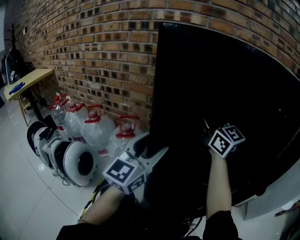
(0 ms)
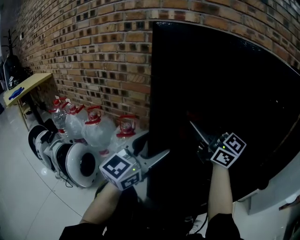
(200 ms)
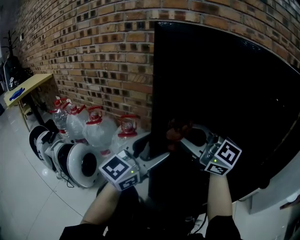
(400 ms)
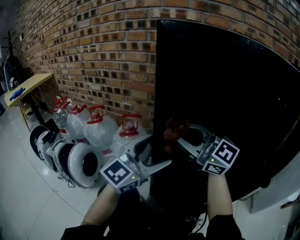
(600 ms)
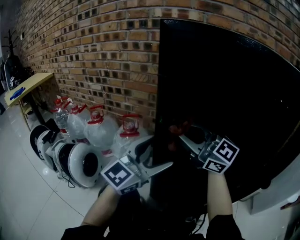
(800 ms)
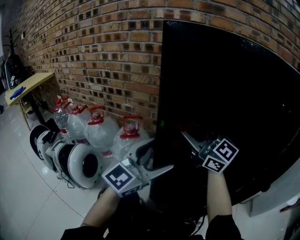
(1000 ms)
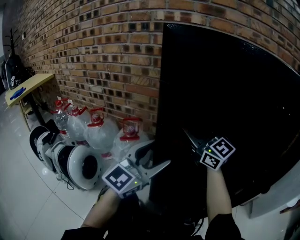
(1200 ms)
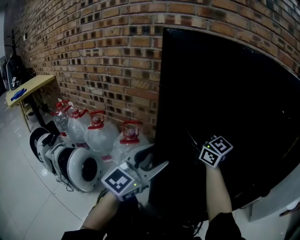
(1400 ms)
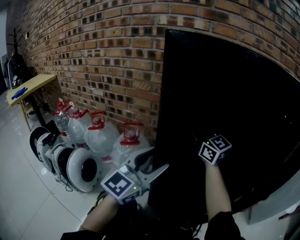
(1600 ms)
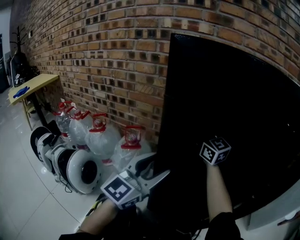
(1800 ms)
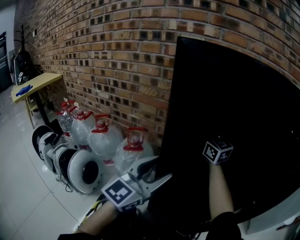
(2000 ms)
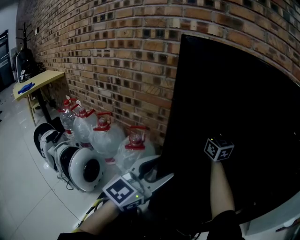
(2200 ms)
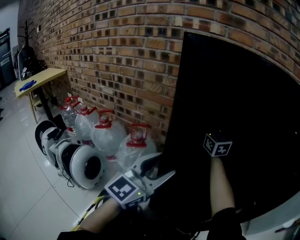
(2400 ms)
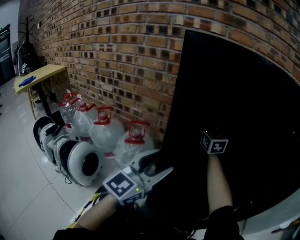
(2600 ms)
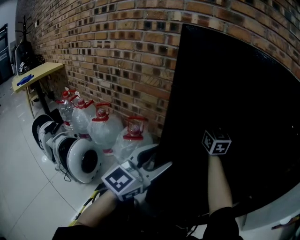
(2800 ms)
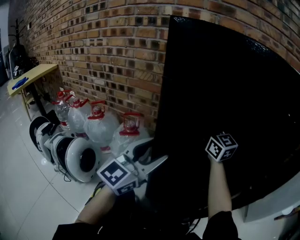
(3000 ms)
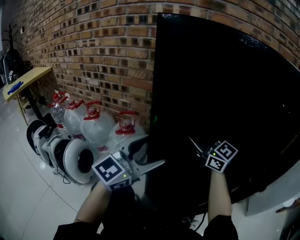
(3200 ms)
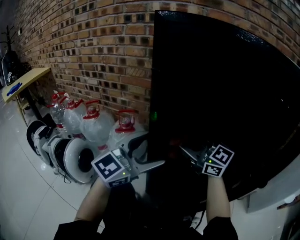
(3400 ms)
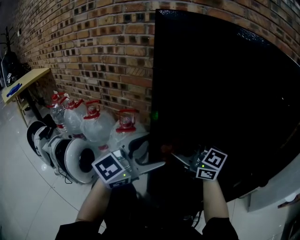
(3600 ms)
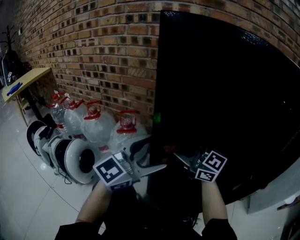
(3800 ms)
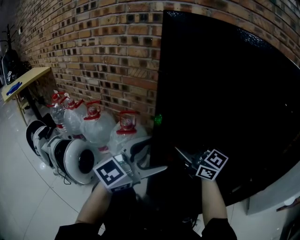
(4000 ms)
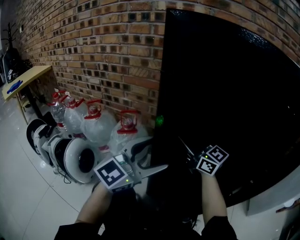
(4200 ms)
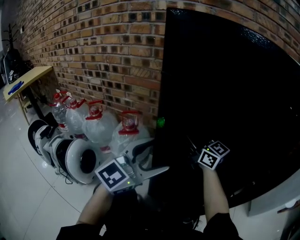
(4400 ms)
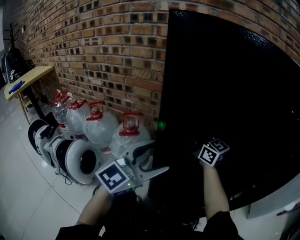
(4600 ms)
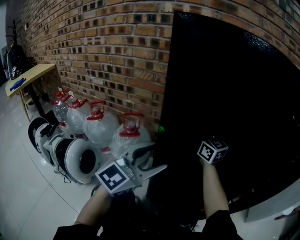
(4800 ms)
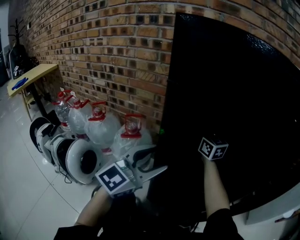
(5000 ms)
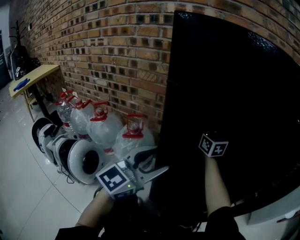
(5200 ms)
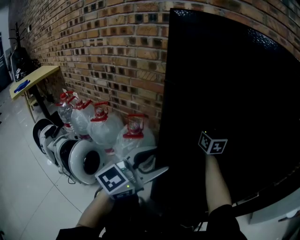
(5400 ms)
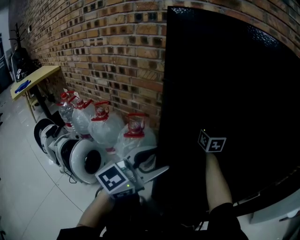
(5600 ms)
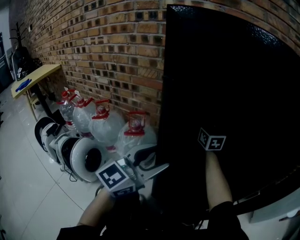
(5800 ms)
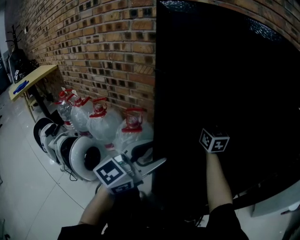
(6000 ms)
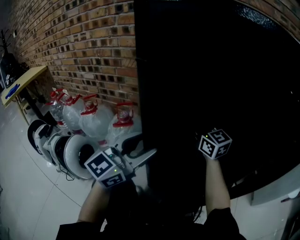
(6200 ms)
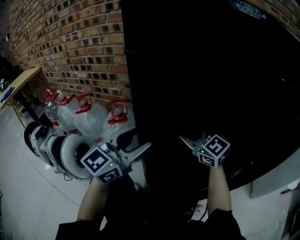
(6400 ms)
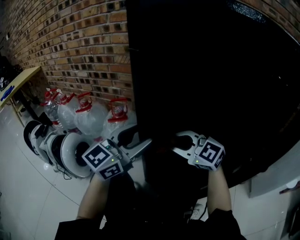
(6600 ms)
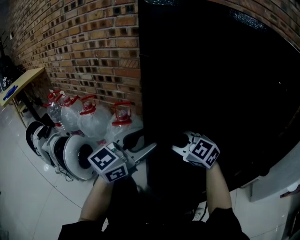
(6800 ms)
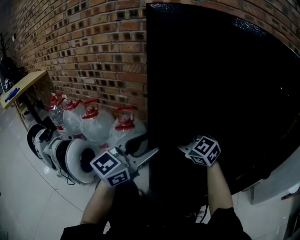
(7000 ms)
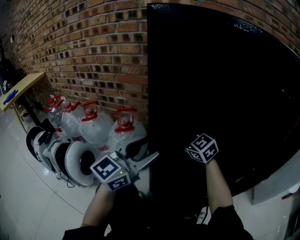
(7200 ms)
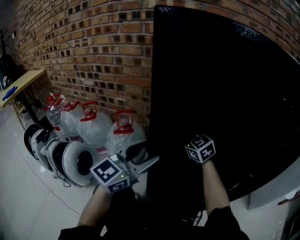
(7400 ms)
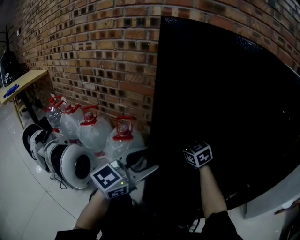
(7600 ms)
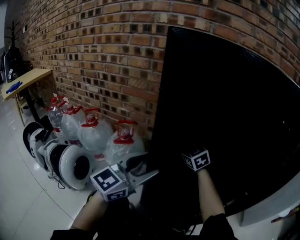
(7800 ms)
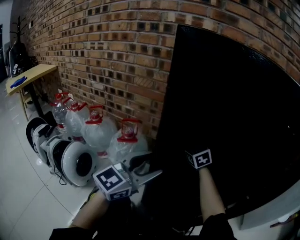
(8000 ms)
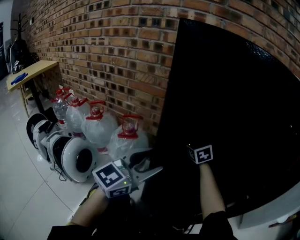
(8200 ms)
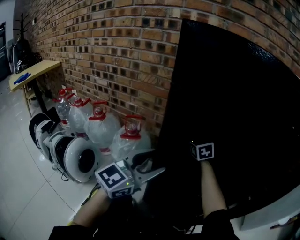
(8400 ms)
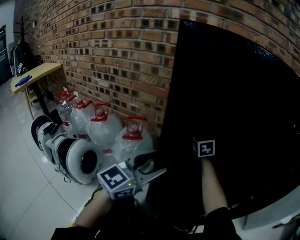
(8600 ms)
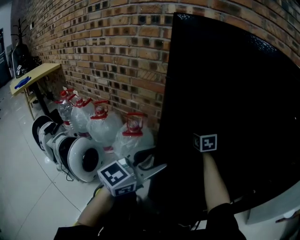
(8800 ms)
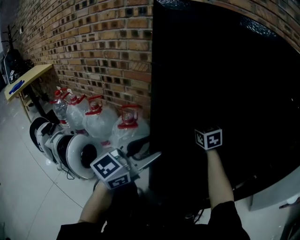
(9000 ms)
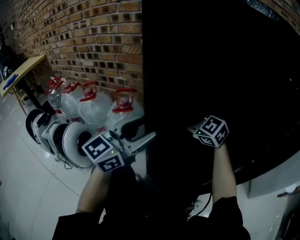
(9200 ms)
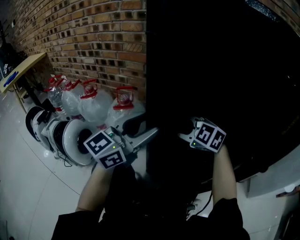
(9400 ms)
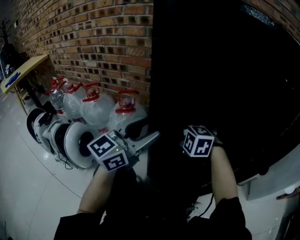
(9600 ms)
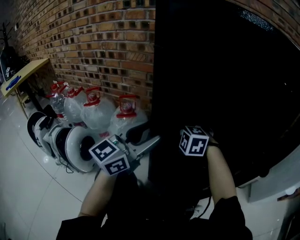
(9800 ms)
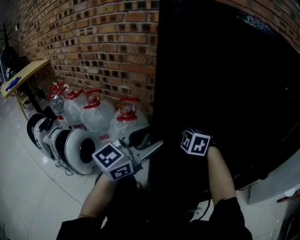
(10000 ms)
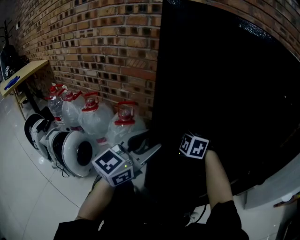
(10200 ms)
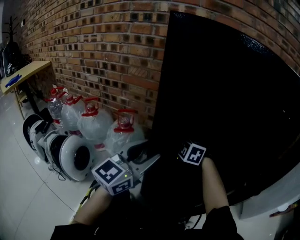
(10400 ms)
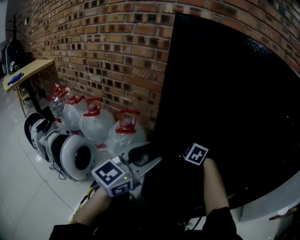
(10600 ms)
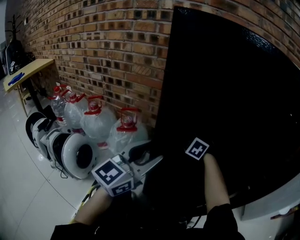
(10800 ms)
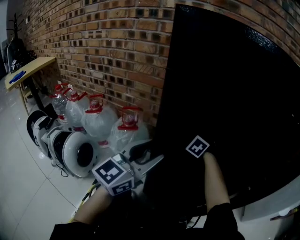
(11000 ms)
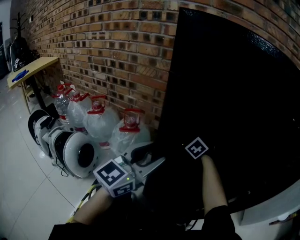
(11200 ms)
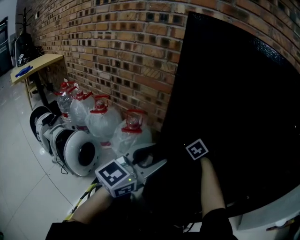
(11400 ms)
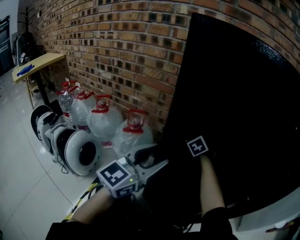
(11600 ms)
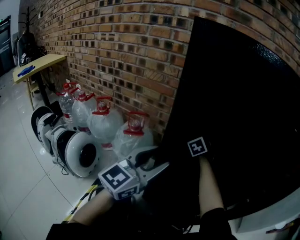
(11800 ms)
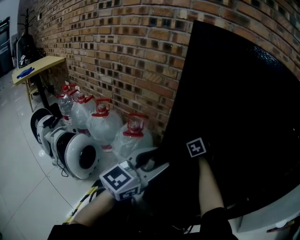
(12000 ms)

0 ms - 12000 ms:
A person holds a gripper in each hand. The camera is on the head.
0 ms - 1600 ms: The right gripper heads downward, covering approximately 5 cm, and travels backward and back again, roughly 10 cm each way.
1600 ms - 3000 ms: The right gripper travels forward and back again, some 10 cm each way.
3000 ms - 4400 ms: The right gripper travels to the left and downward by roughly 10 cm, and reaches roughly 15 cm backward, then returns.
4400 ms - 6000 ms: The right gripper is displaced forward by roughly 10 cm, and swivels approximately 30 degrees.
6000 ms - 7600 ms: The right gripper moves downward, some 10 cm, travels backward and back again, some 20 cm each way, and turns by approximately 30 degrees.
9000 ms - 10400 ms: The right gripper heads backward, to the left and downward, covering some 15 cm, and tilts its fingers about 30 degrees downward.
10400 ms - 12000 ms: The right gripper moves forward, about 15 cm, and turns by roughly 50 degrees.

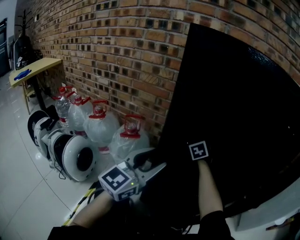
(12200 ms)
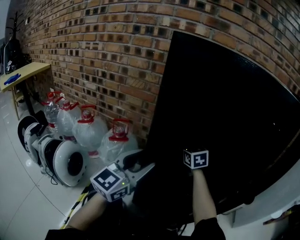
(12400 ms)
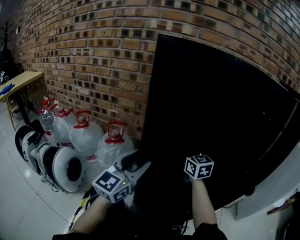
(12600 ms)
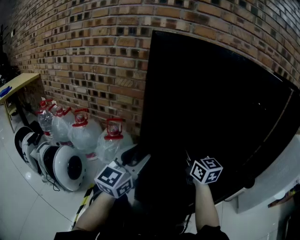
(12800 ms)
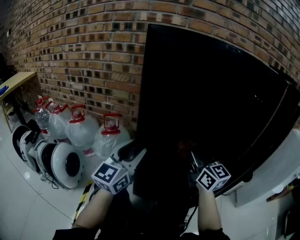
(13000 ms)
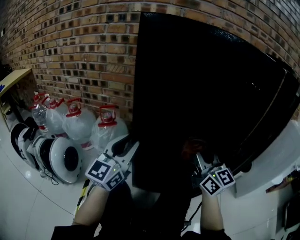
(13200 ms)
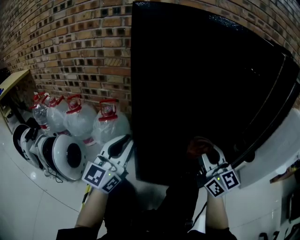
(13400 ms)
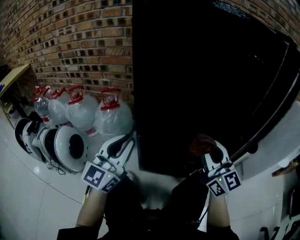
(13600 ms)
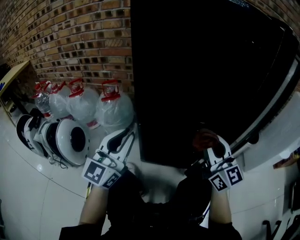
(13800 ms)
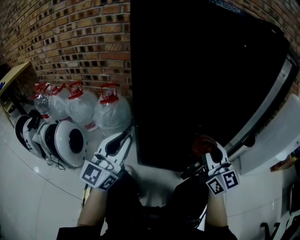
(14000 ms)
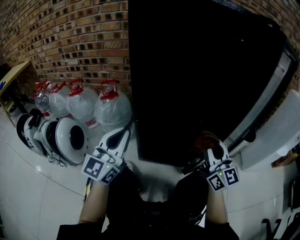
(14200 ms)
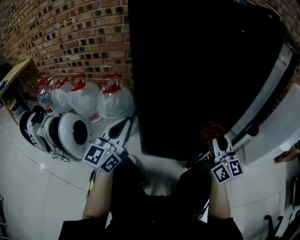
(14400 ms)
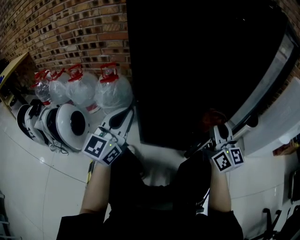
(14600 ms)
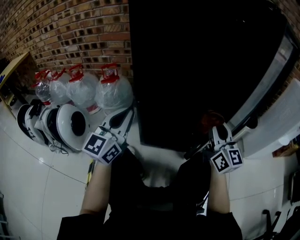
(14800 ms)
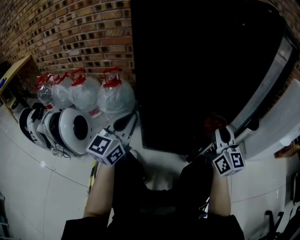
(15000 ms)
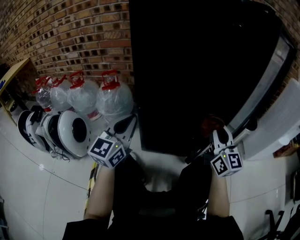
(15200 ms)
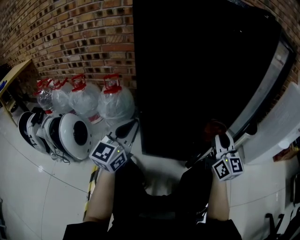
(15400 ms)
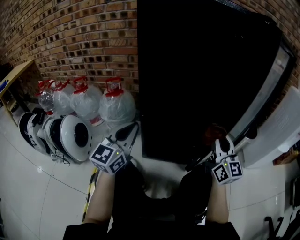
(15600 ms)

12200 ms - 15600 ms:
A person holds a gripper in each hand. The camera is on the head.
12200 ms - 13800 ms: The right gripper goes some 35 cm backward, and angles its fingers upward, by roughly 40 degrees; the left gripper heads backward, covering roughly 10 cm, and closes its fingers.
13800 ms - 15600 ms: The right gripper moves to the right, roughly 5 cm.

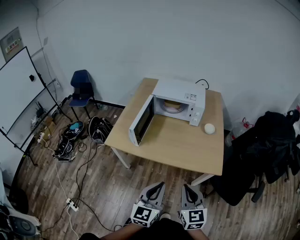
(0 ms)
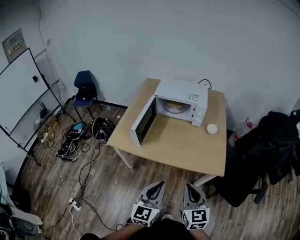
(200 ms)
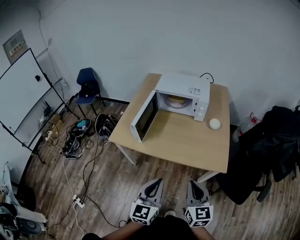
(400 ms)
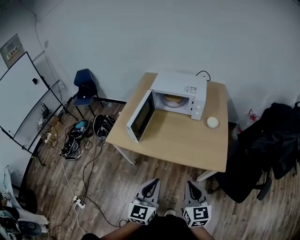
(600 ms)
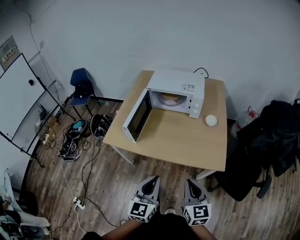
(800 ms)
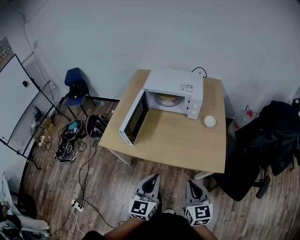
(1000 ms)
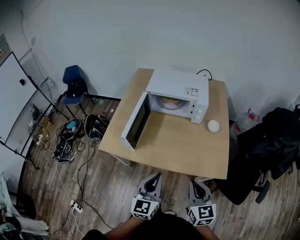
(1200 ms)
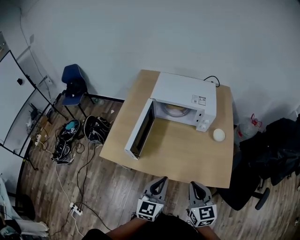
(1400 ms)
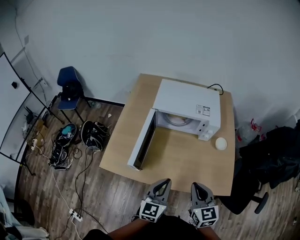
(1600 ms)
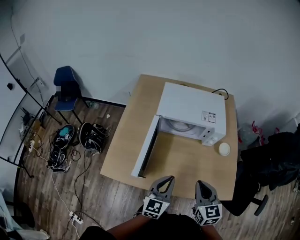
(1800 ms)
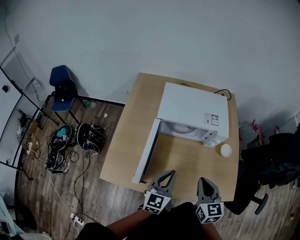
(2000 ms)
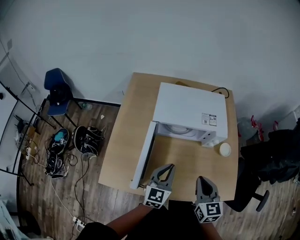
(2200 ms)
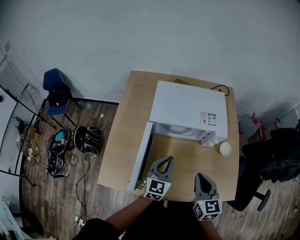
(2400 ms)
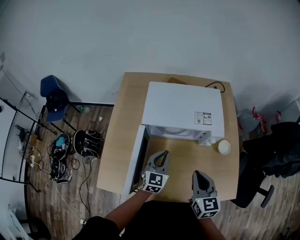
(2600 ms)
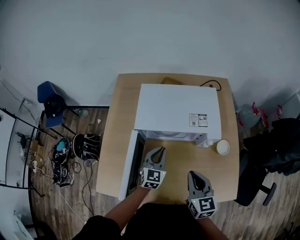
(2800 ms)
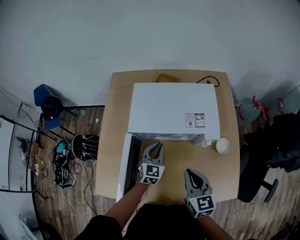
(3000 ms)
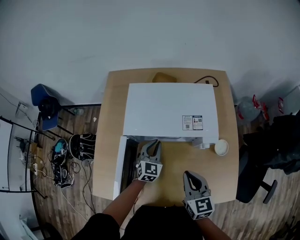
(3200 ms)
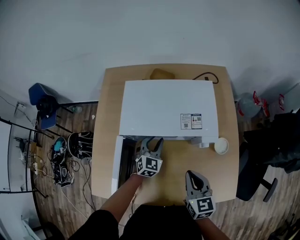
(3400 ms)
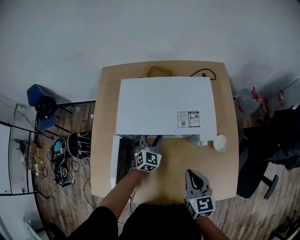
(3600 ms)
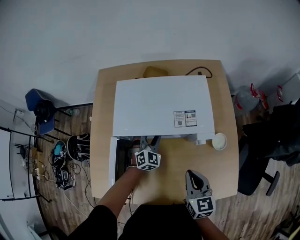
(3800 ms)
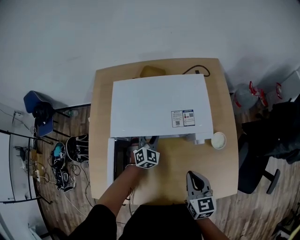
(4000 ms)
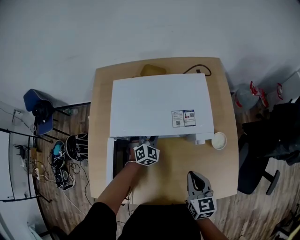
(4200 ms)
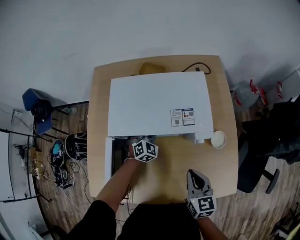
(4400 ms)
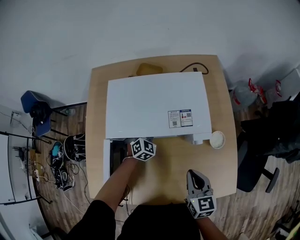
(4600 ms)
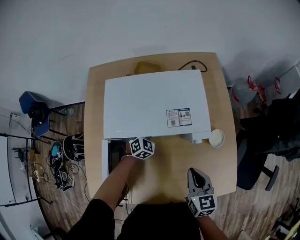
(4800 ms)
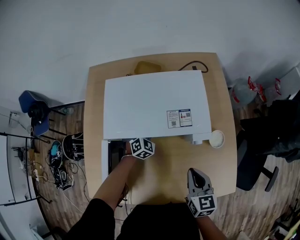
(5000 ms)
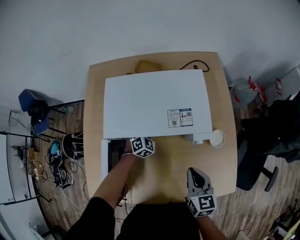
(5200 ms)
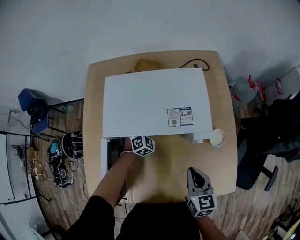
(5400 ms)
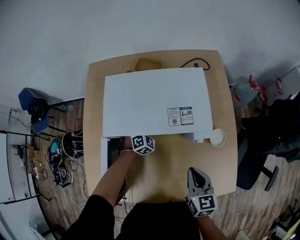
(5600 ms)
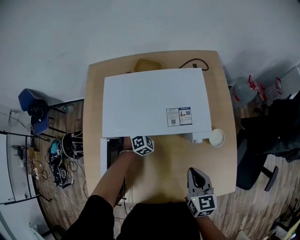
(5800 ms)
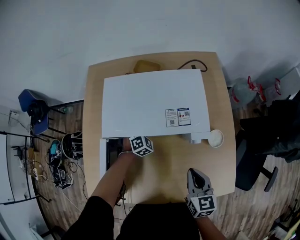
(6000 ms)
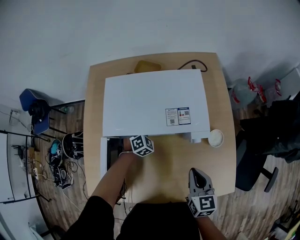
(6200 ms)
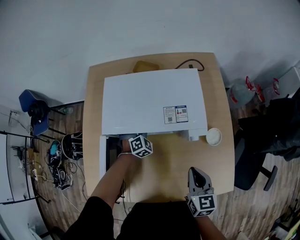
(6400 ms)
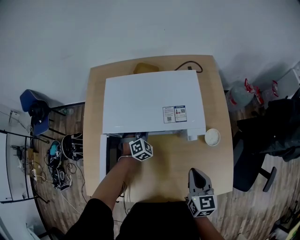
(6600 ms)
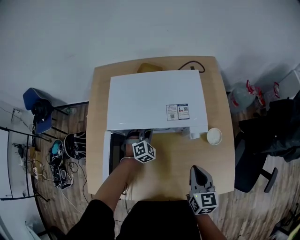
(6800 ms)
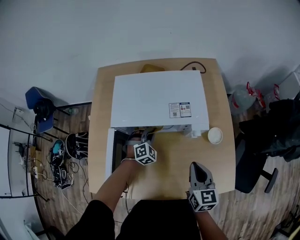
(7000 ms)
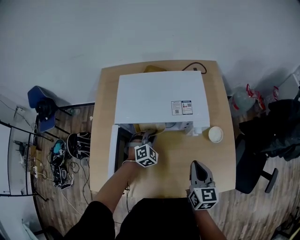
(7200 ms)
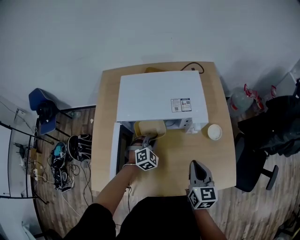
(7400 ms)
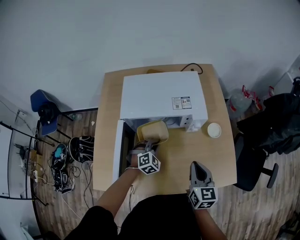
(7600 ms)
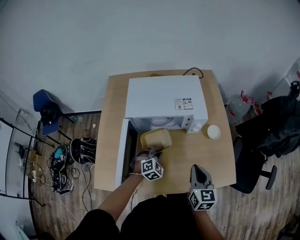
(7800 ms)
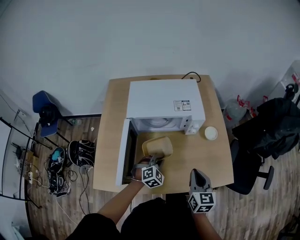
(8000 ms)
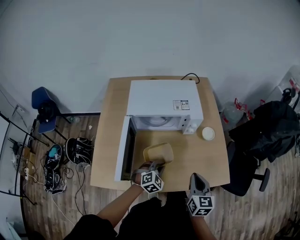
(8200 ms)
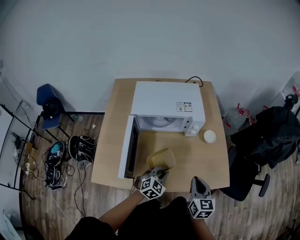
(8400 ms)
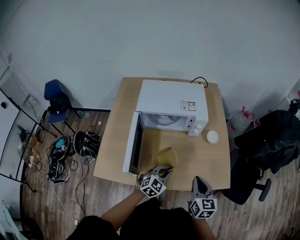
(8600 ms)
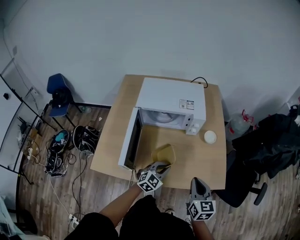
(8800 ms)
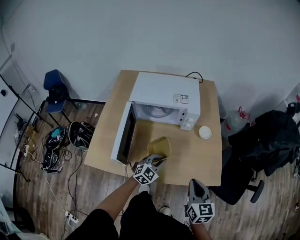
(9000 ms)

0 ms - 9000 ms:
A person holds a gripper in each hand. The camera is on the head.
0 ms - 1600 ms: Both grippers travel together forward, roughly 25 cm.
1600 ms - 3000 ms: The right gripper heads forward, covering some 20 cm. The left gripper heads forward, covering some 35 cm, and swivels about 20 degrees.
3000 ms - 4400 ms: The left gripper travels forward and downward by roughly 15 cm, turns by approximately 30 degrees, and opens; the right gripper is displaced to the right and downward by some 10 cm.
4400 ms - 6000 ms: The left gripper moves some 5 cm, and closes its fingers.
6000 ms - 7600 ms: The right gripper goes some 5 cm backward, while the left gripper is displaced backward by about 20 cm.
7600 ms - 9000 ms: Both grippers move backward and to the right, roughly 20 cm. The left gripper swivels roughly 30 degrees.
